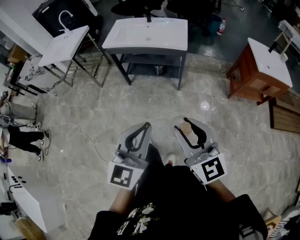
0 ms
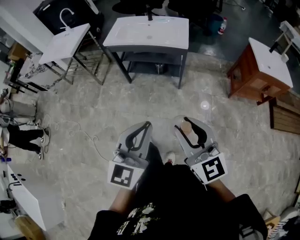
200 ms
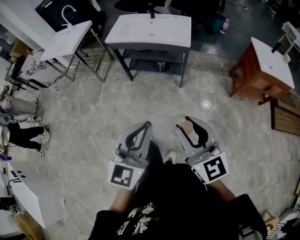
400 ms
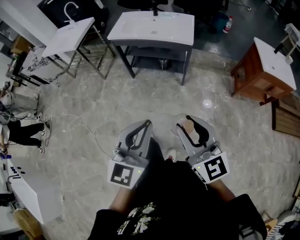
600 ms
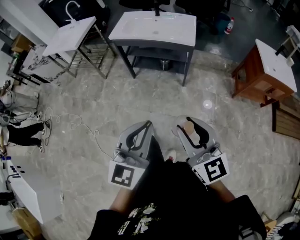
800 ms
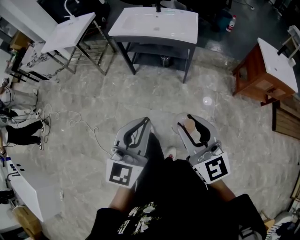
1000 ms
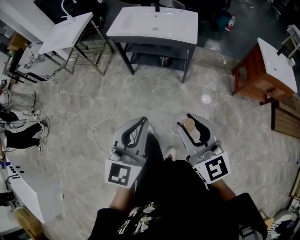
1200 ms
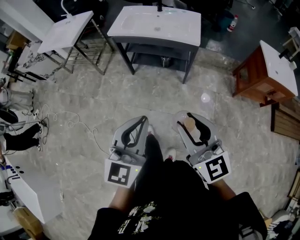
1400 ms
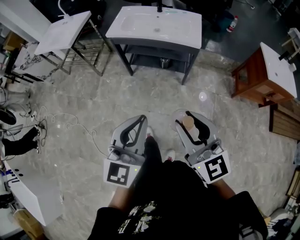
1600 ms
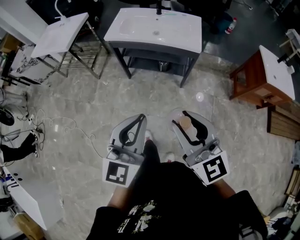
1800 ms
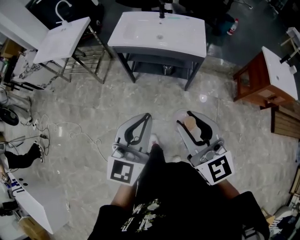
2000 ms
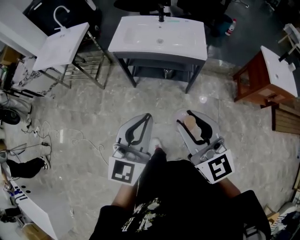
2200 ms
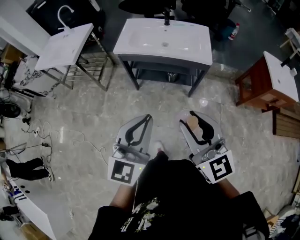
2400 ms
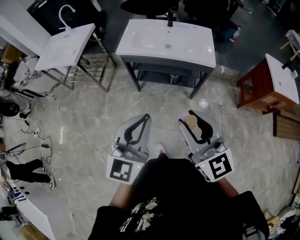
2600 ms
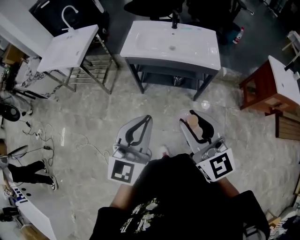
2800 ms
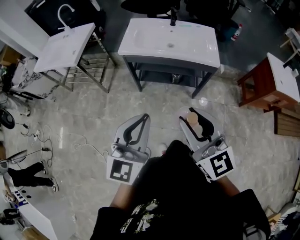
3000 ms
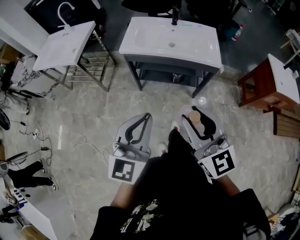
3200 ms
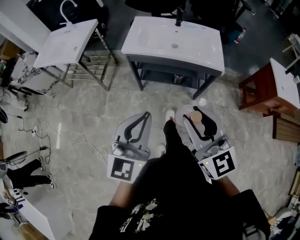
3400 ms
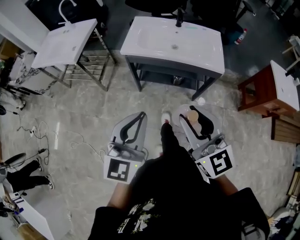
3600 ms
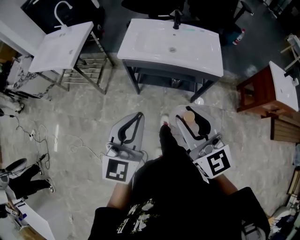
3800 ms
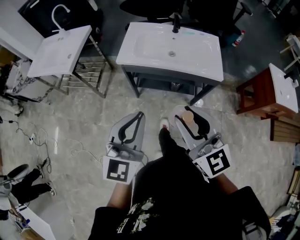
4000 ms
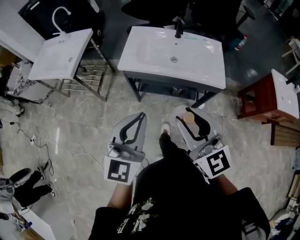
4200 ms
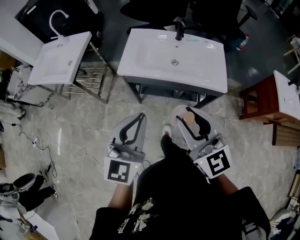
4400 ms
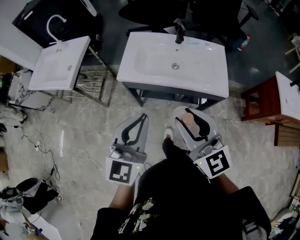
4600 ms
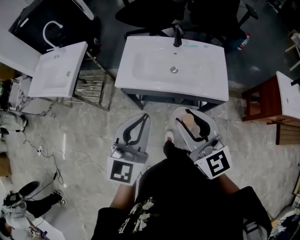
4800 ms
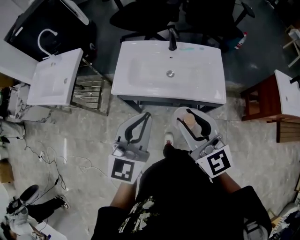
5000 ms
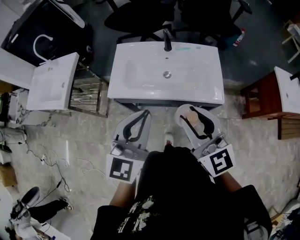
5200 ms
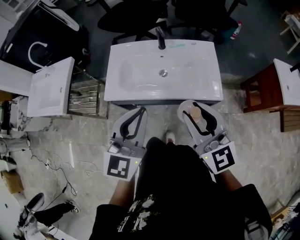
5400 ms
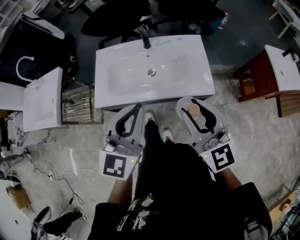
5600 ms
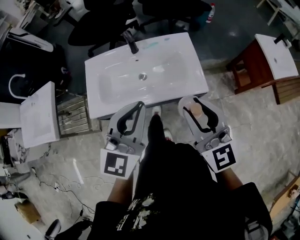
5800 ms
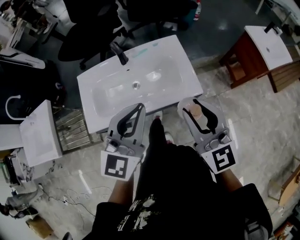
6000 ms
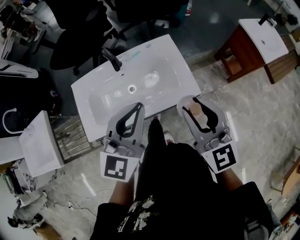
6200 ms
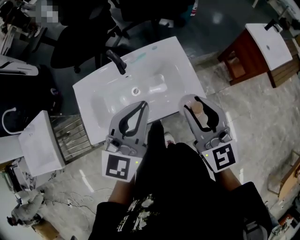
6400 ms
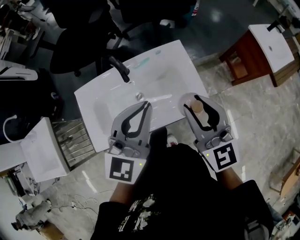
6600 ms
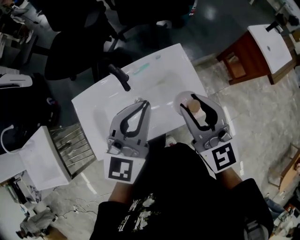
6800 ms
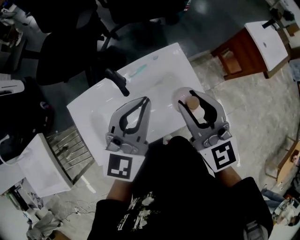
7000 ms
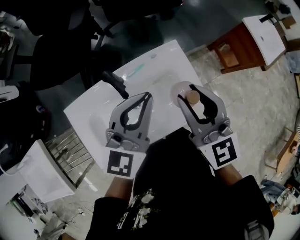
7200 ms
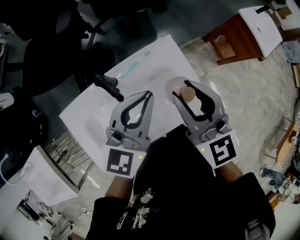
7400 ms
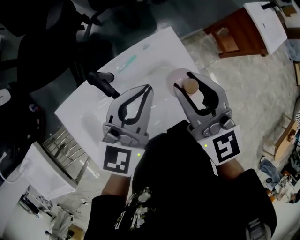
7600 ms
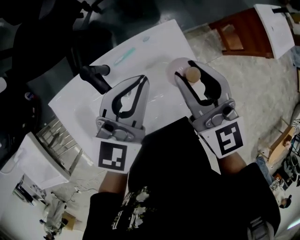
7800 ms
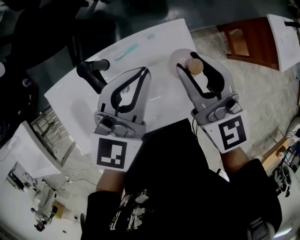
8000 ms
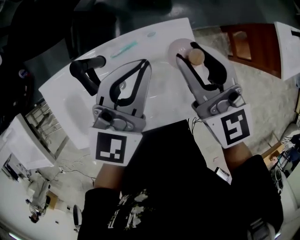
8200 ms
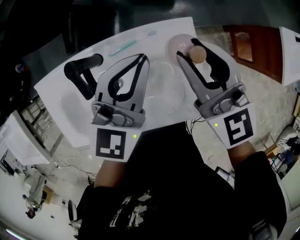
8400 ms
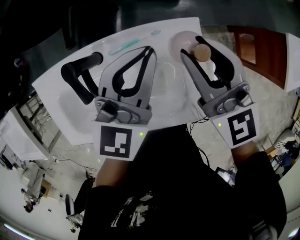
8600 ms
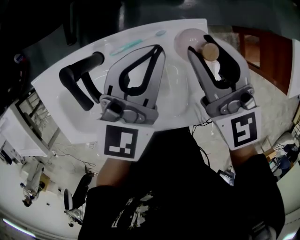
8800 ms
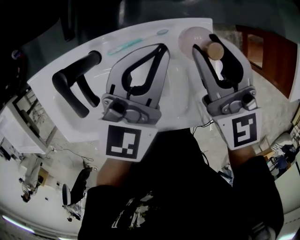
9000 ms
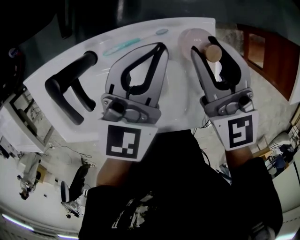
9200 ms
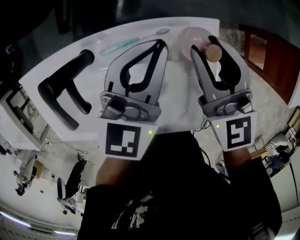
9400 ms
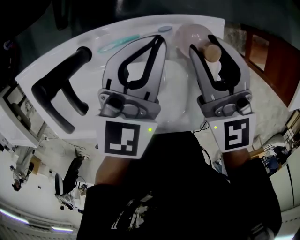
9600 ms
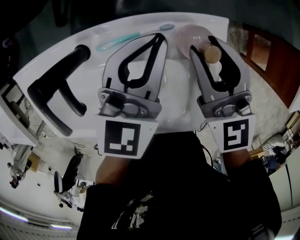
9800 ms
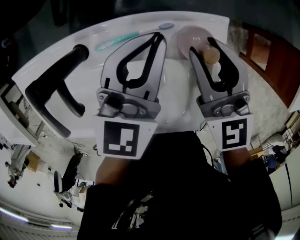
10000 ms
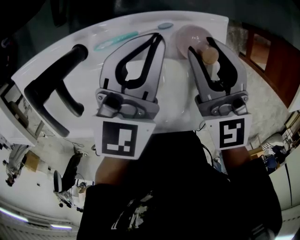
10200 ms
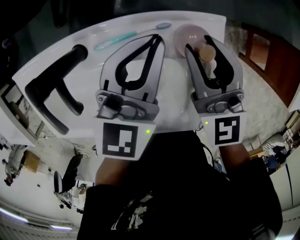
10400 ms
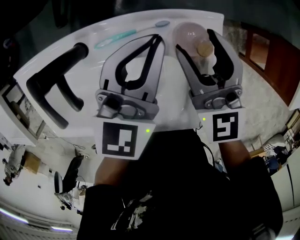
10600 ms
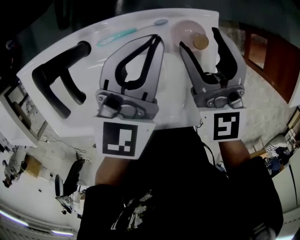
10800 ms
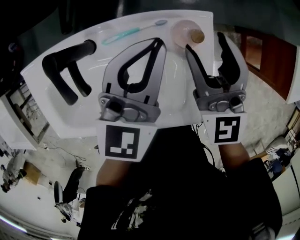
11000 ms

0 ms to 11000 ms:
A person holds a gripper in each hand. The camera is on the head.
0 ms to 1600 ms: The two grippers go some 15 cm forward and to the left.
1600 ms to 3200 ms: Both grippers travel together forward and to the left, roughly 25 cm.
3200 ms to 4800 ms: Both grippers move forward, approximately 30 cm.
4800 ms to 6200 ms: The left gripper moves approximately 30 cm, and turns by some 30 degrees. Meanwhile the right gripper moves some 30 cm, and swivels roughly 30 degrees.
6200 ms to 7800 ms: The left gripper moves forward, approximately 30 cm. The right gripper goes some 30 cm forward and to the left.
7800 ms to 9400 ms: Both grippers travel together downward and forward, about 25 cm. The left gripper swivels some 20 degrees.
9400 ms to 11000 ms: The left gripper ends up some 5 cm from where it was, while the right gripper shifts by some 5 cm, and opens its fingers.

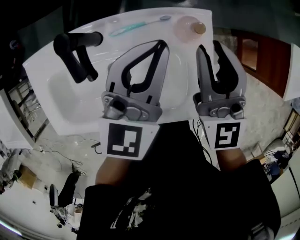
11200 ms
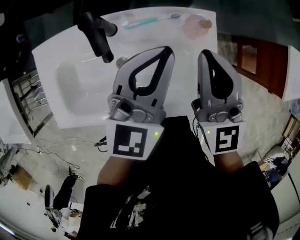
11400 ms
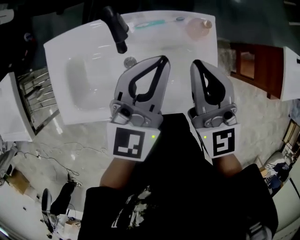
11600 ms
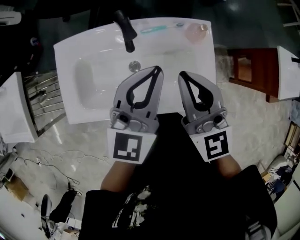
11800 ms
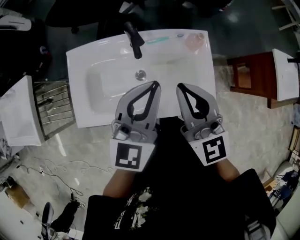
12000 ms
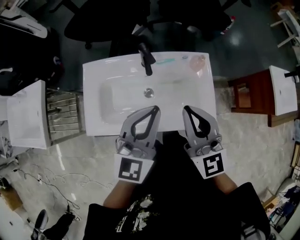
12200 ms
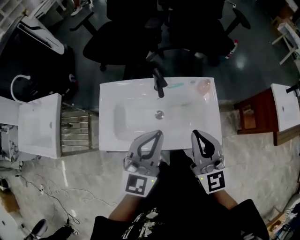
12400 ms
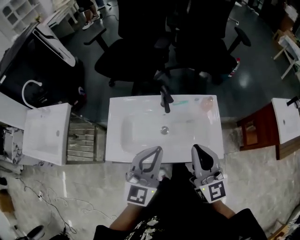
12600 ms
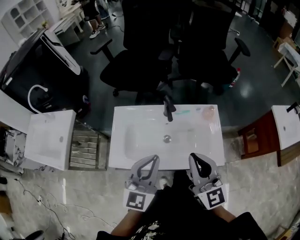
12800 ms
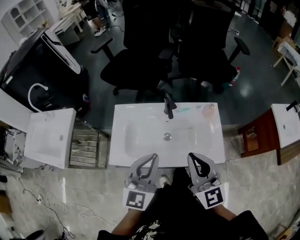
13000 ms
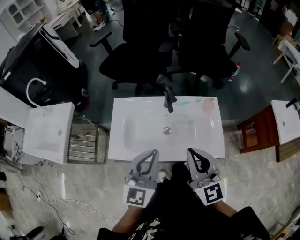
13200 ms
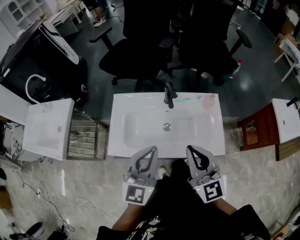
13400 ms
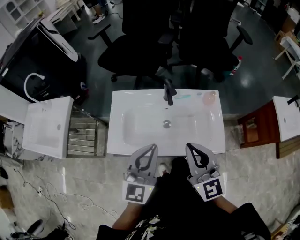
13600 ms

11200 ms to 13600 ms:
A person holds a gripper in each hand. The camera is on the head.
11200 ms to 12400 ms: The grippers both shift backward, upward and to the left by about 35 cm. The right gripper closes.
12400 ms to 13600 ms: The right gripper changes place by roughly 5 cm. Meanwhile the left gripper shifts by some 5 cm.

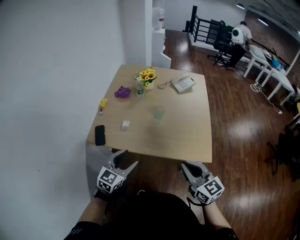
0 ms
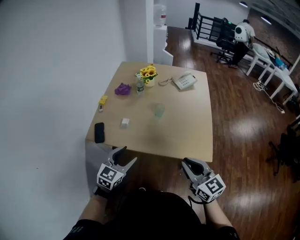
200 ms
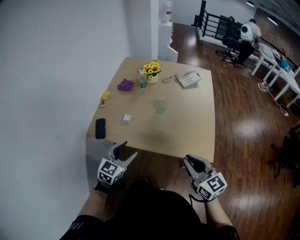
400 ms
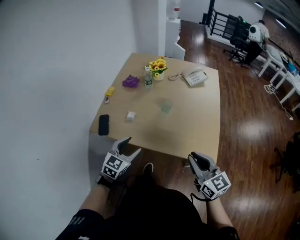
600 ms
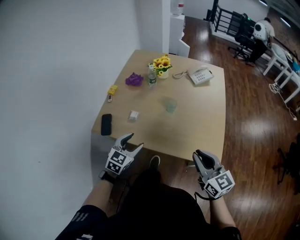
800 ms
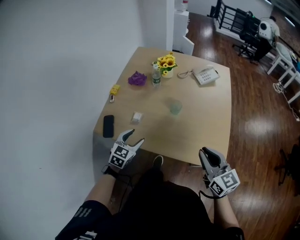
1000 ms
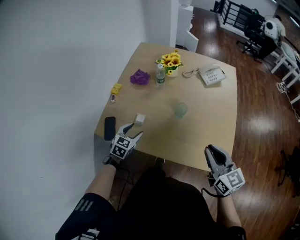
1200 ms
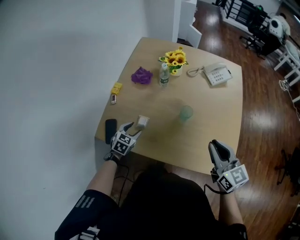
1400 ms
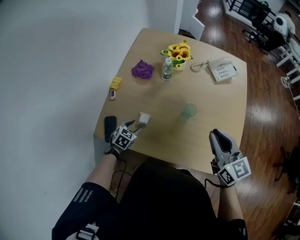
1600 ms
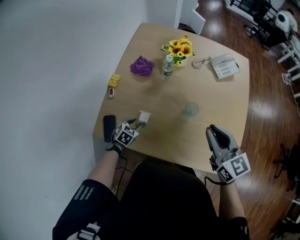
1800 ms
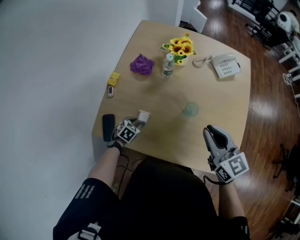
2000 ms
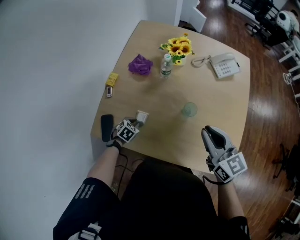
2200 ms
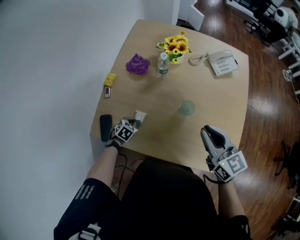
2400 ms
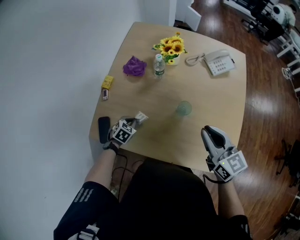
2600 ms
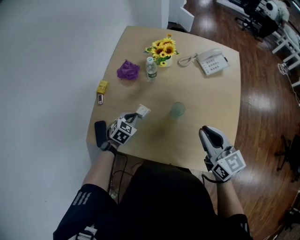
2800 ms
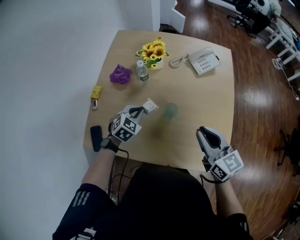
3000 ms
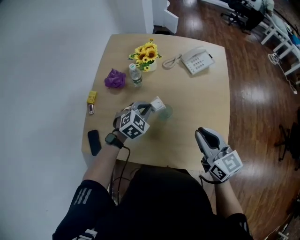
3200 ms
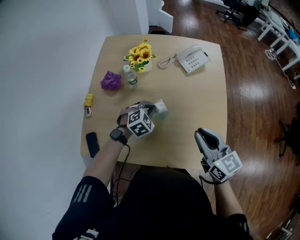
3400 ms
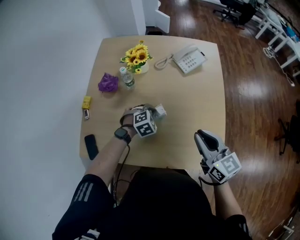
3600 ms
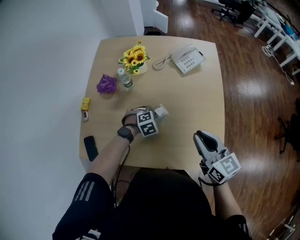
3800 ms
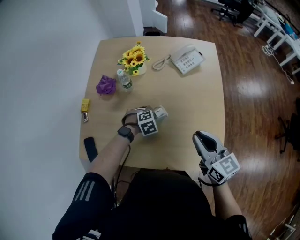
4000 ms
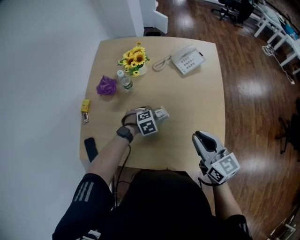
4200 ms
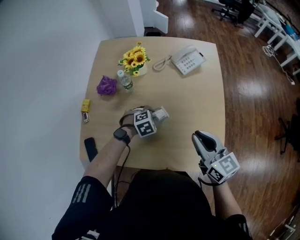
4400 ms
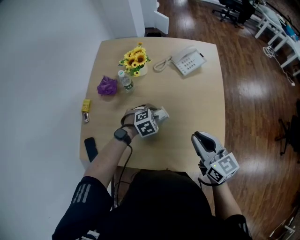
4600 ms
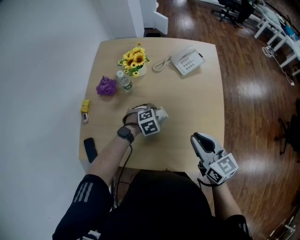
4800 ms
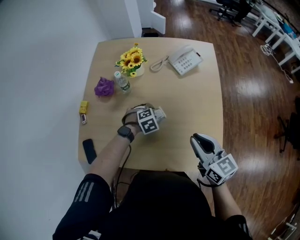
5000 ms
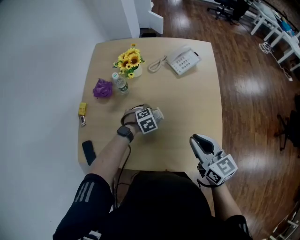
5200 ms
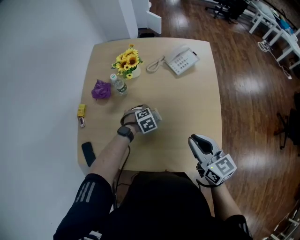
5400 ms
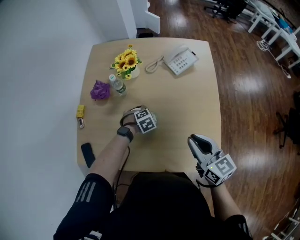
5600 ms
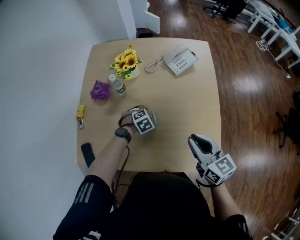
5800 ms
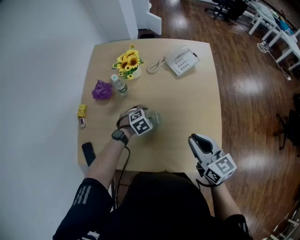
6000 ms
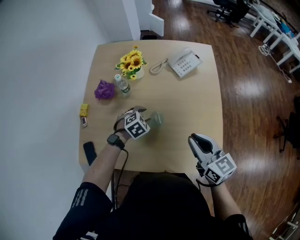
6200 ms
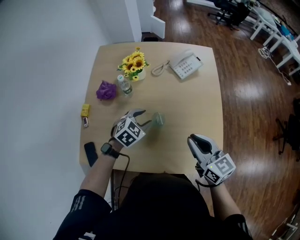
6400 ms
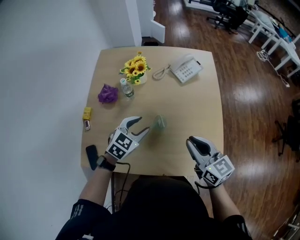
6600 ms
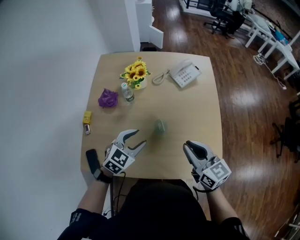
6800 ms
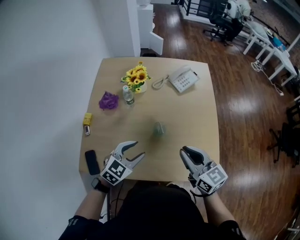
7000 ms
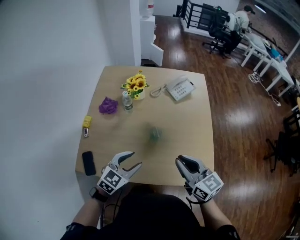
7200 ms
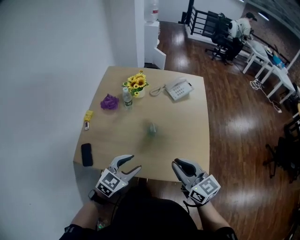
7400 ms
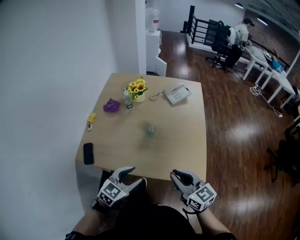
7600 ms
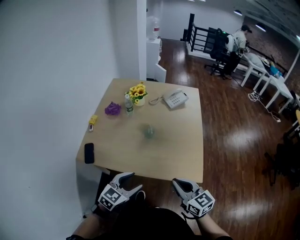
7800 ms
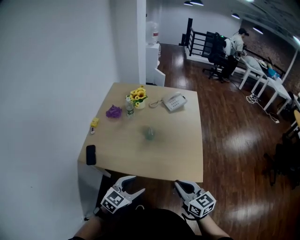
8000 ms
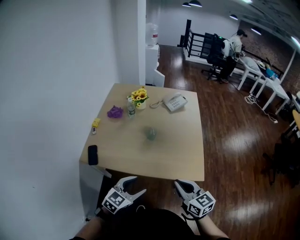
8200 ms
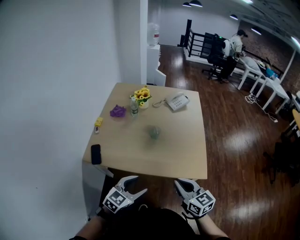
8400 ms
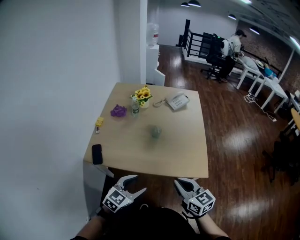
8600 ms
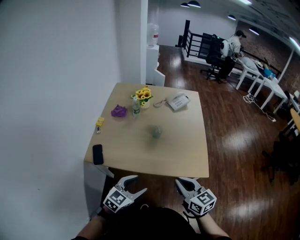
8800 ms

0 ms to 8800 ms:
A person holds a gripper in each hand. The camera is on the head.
0 ms to 1400 ms: The right gripper goes some 25 cm forward. The left gripper moves forward and downward, roughly 35 cm, and swivels approximately 30 degrees.
1400 ms to 3000 ms: The right gripper goes roughly 10 cm forward; the left gripper goes some 20 cm to the right, forward and upward, and closes its fingers.
3000 ms to 4400 ms: The right gripper is displaced to the right by some 5 cm; the left gripper moves to the right and downward, approximately 15 cm, rotates some 30 degrees, and opens its fingers.
4400 ms to 5800 ms: The left gripper changes place by some 5 cm, and opens.
5800 ms to 7400 ms: The right gripper heads backward and upward, covering about 15 cm. Meanwhile the left gripper shifts roughly 35 cm backward and upward, and tilts its fingers about 40 degrees upward.
7400 ms to 8800 ms: Both grippers move backward, roughly 20 cm.

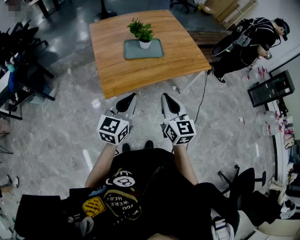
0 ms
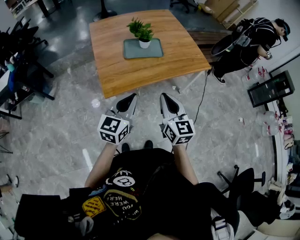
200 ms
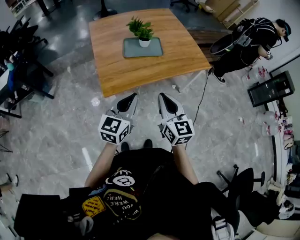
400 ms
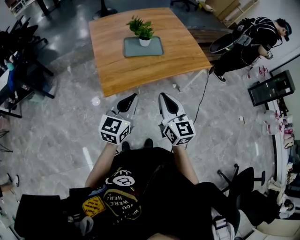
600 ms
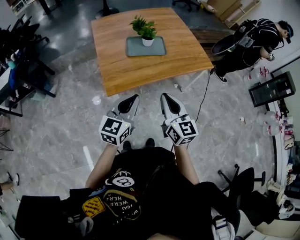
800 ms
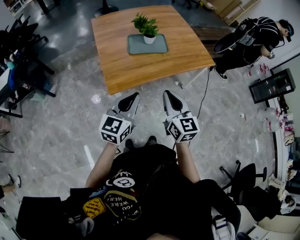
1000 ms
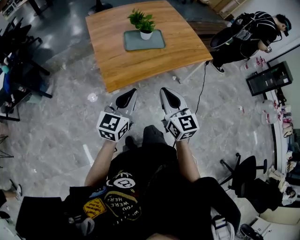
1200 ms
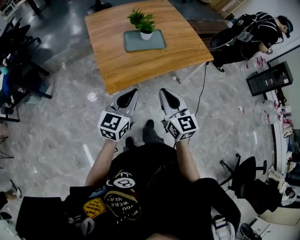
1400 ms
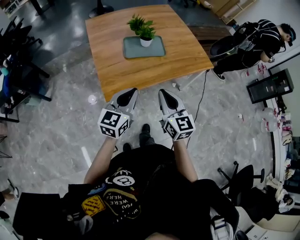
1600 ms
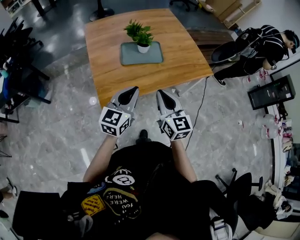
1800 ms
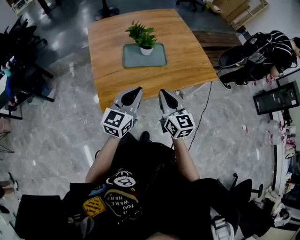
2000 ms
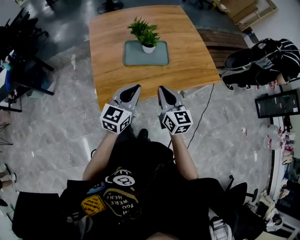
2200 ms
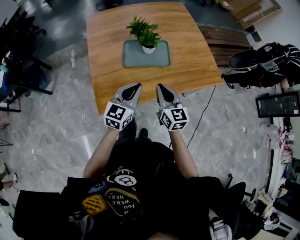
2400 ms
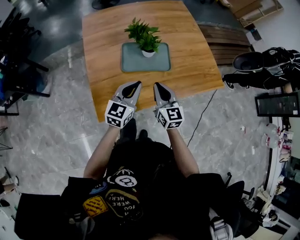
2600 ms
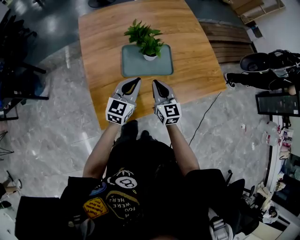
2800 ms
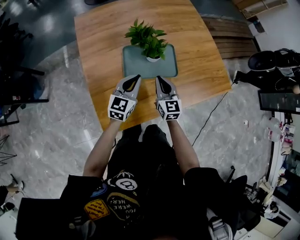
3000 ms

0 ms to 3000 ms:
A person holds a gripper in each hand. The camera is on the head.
0 ms to 1600 ms: Both grippers move forward, roughly 5 cm.
1600 ms to 3000 ms: The right gripper moves forward and downward, about 40 cm; the left gripper heads forward, covering approximately 35 cm.
